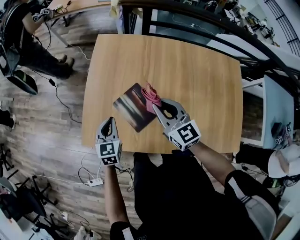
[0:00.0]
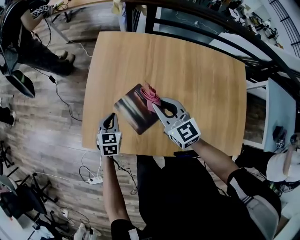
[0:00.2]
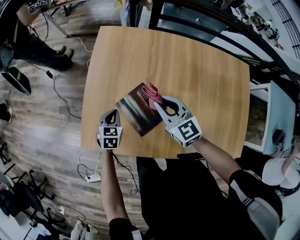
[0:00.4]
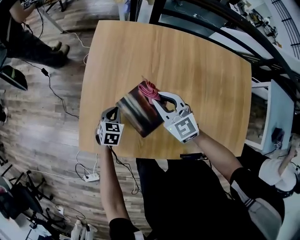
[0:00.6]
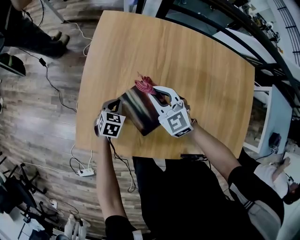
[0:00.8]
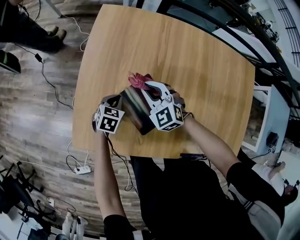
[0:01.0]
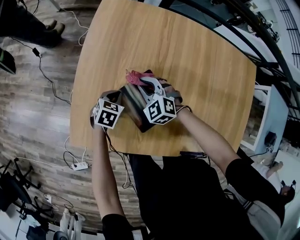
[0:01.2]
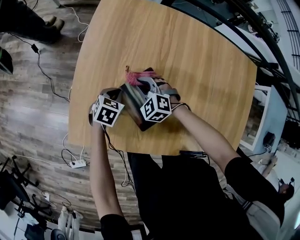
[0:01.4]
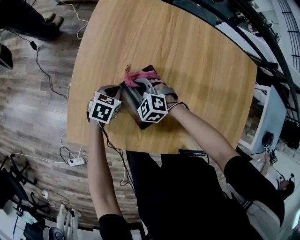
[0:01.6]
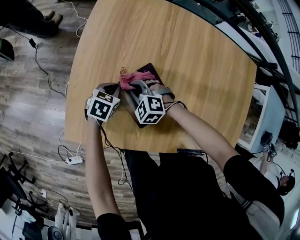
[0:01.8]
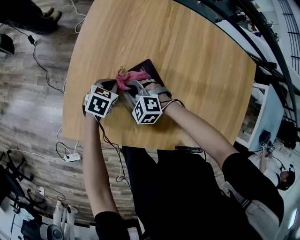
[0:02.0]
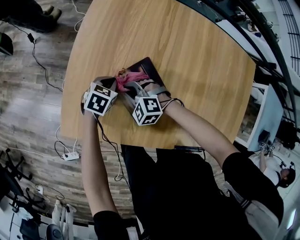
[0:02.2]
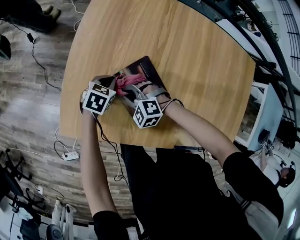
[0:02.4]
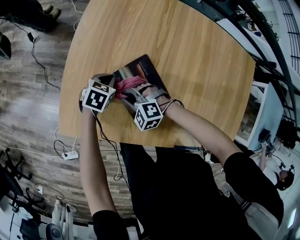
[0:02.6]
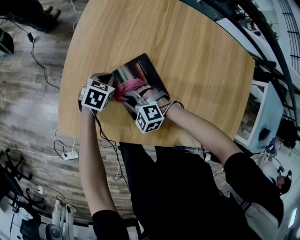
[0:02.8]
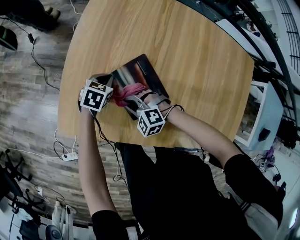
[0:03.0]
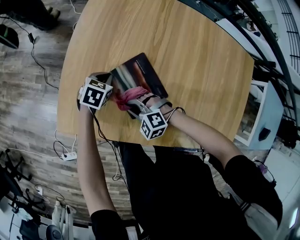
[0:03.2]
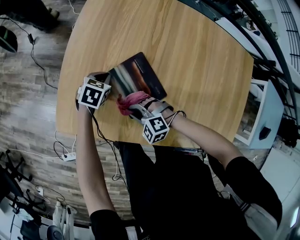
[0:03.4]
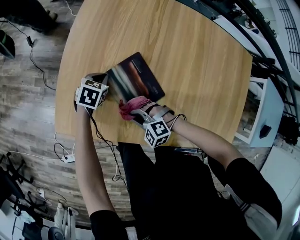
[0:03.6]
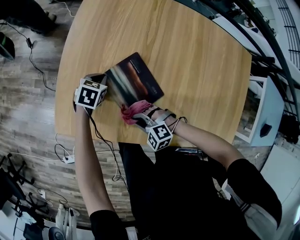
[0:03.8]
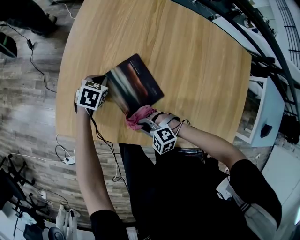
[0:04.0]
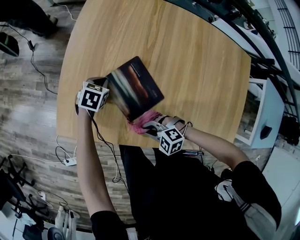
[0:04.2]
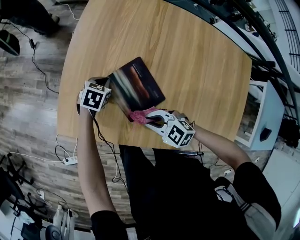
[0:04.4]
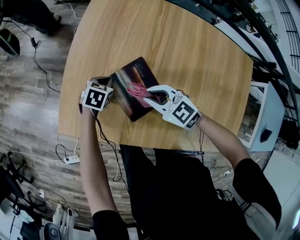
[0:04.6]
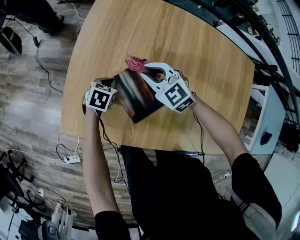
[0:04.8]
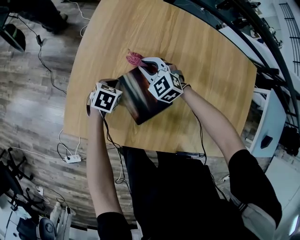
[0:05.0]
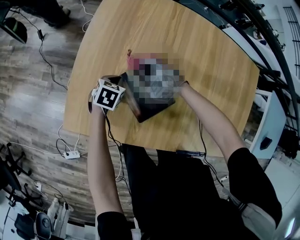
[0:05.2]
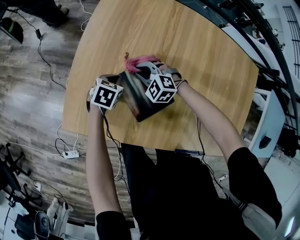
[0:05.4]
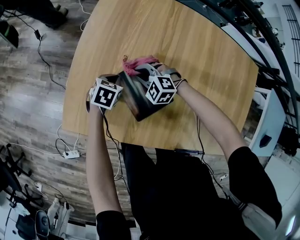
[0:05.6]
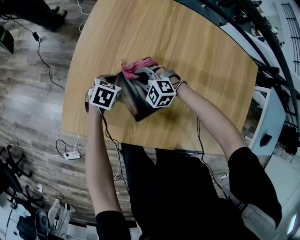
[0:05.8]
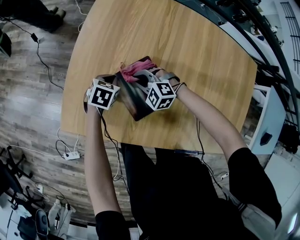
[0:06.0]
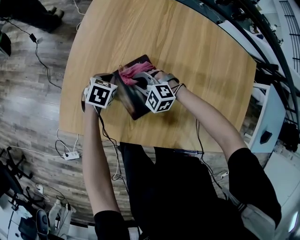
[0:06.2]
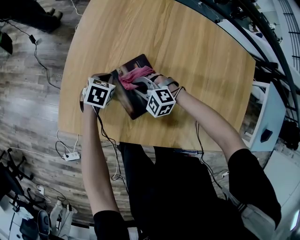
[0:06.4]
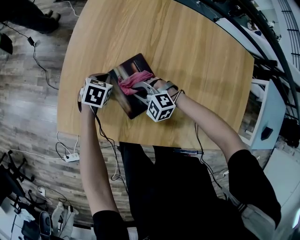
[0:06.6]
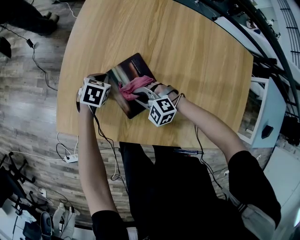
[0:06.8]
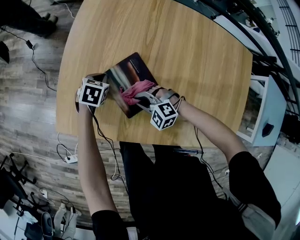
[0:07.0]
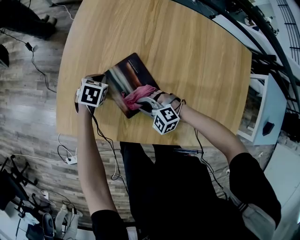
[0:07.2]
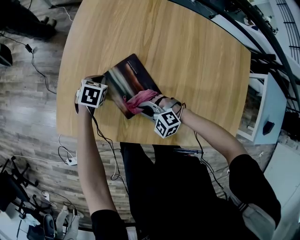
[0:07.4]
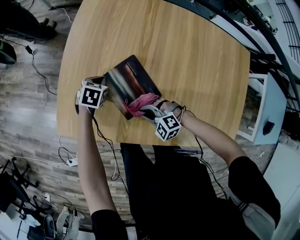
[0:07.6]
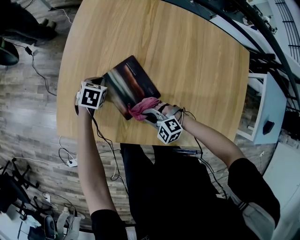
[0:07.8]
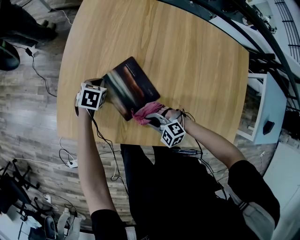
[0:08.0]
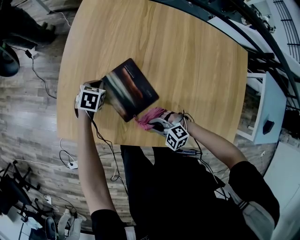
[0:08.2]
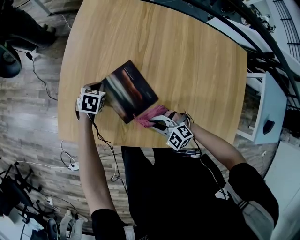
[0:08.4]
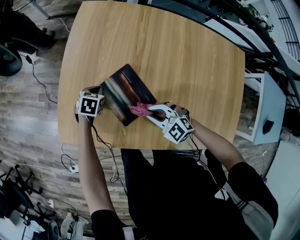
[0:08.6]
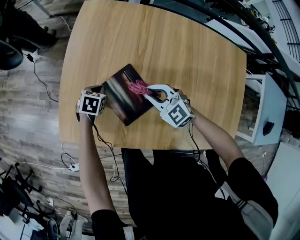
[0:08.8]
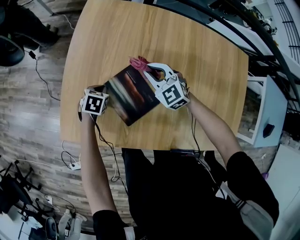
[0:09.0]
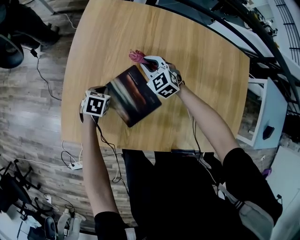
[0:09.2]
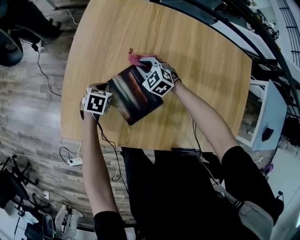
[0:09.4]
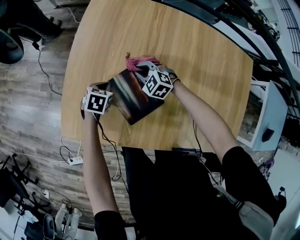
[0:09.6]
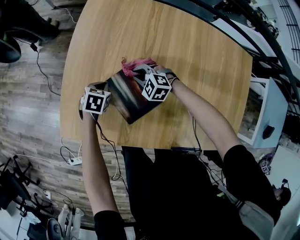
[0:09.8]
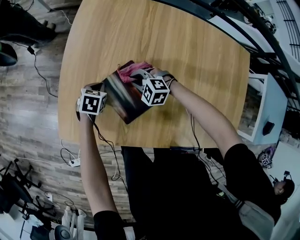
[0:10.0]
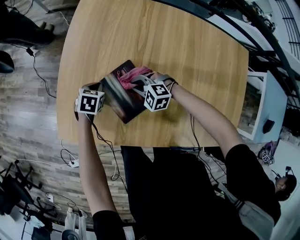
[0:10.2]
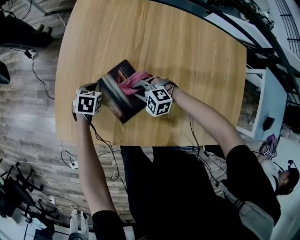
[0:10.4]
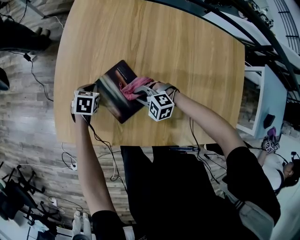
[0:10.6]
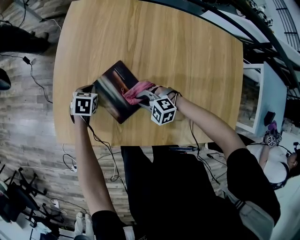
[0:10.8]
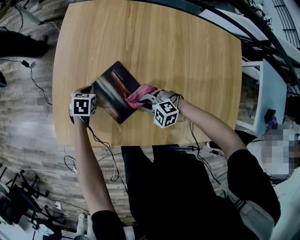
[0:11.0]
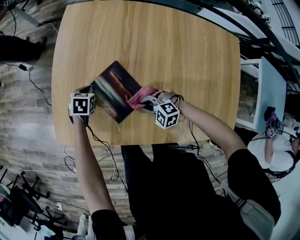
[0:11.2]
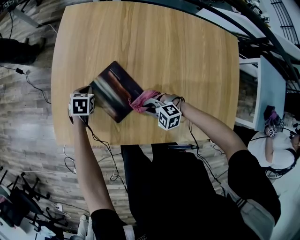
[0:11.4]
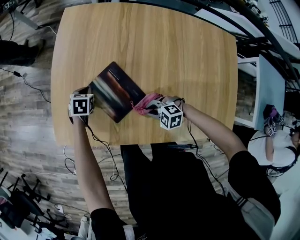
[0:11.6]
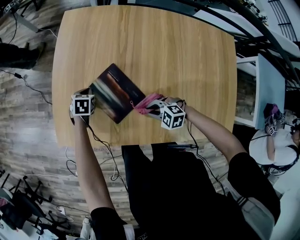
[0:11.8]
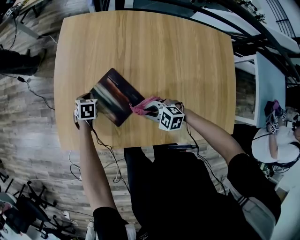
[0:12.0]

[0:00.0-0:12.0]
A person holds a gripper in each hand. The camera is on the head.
0:00.0 to 0:01.6: The left gripper travels downward and forward by some 25 cm, and turns by roughly 40 degrees, while the right gripper is displaced downward by approximately 35 cm, and points its fingers roughly 40 degrees further downward.
0:01.6 to 0:03.0: The right gripper goes about 15 cm backward, and turns by approximately 20 degrees.
0:03.0 to 0:04.4: The right gripper shifts by approximately 15 cm, and rotates roughly 30 degrees.
0:04.4 to 0:06.0: The right gripper moves some 20 cm, and changes its angle by roughly 30 degrees.
0:06.0 to 0:07.6: The right gripper is displaced backward by about 20 cm.
0:07.6 to 0:09.0: The right gripper moves forward and upward, about 25 cm, and rotates some 40 degrees.
0:09.0 to 0:10.4: The right gripper heads downward and backward, covering roughly 15 cm, and rotates approximately 40 degrees.
0:10.4 to 0:12.0: The right gripper is displaced backward by approximately 10 cm.

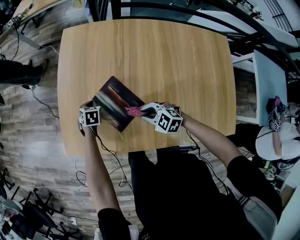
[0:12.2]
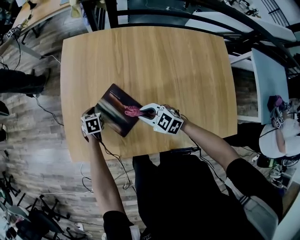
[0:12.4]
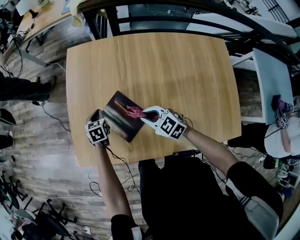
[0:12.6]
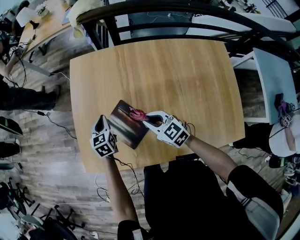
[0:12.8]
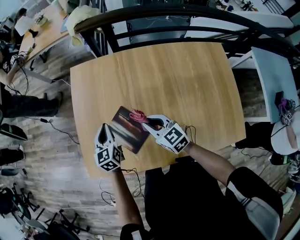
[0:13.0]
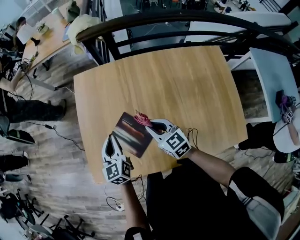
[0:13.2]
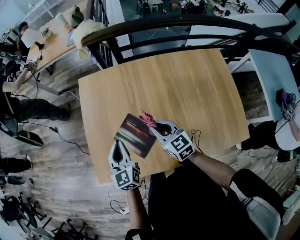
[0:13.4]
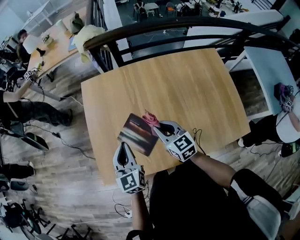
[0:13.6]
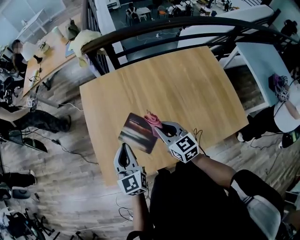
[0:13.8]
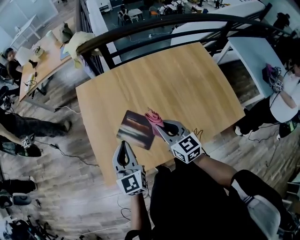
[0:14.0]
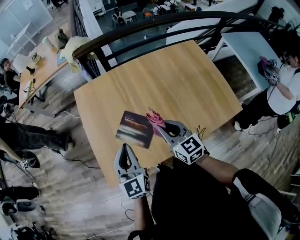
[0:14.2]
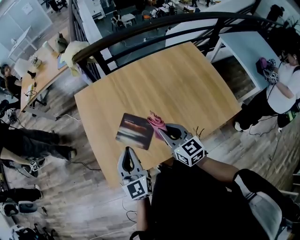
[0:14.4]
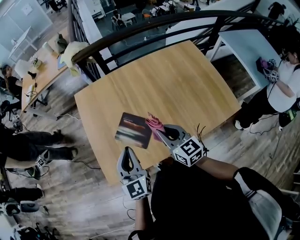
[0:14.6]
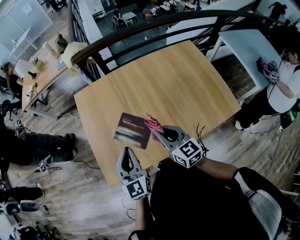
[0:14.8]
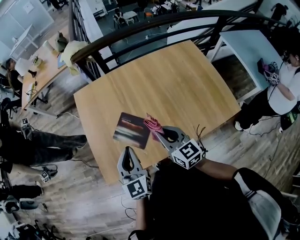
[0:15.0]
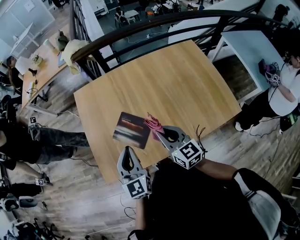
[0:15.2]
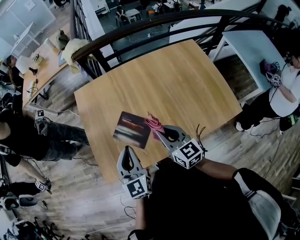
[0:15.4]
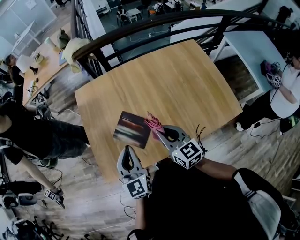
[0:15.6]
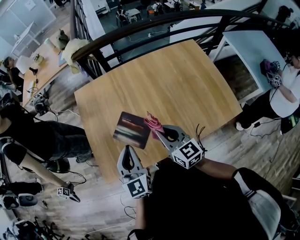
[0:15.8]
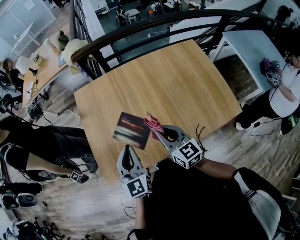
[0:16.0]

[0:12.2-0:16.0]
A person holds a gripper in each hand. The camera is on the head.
0:12.2 to 0:13.4: The left gripper moves upward, some 30 cm, and tips its fingers upward by about 50 degrees, while the right gripper shifts approximately 20 cm upward and forward, and swivels about 50 degrees.
0:13.4 to 0:14.8: The grippers both shift backward and upward by roughly 15 cm.
0:14.8 to 0:16.0: The grippers move only a little.

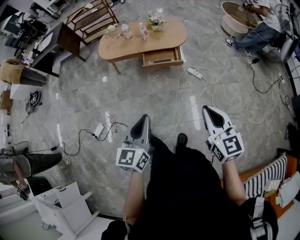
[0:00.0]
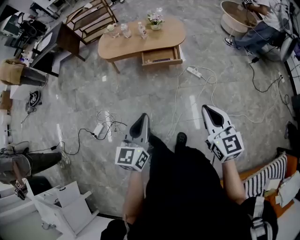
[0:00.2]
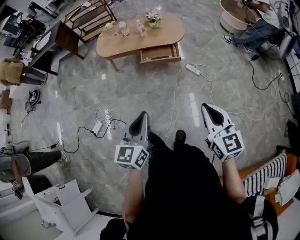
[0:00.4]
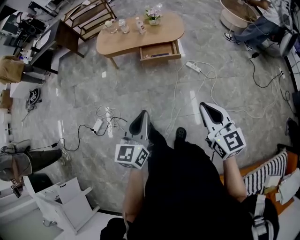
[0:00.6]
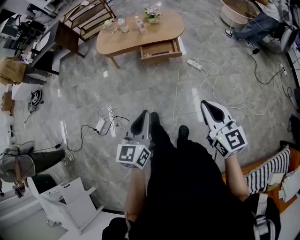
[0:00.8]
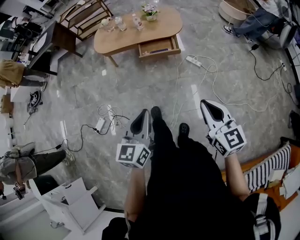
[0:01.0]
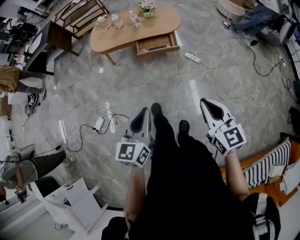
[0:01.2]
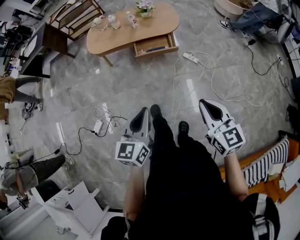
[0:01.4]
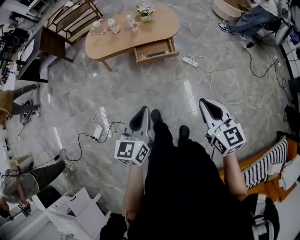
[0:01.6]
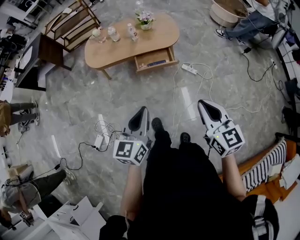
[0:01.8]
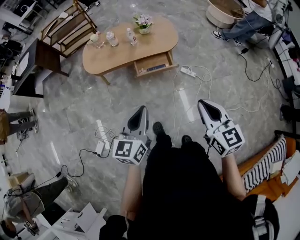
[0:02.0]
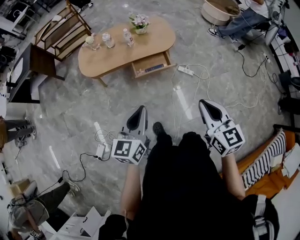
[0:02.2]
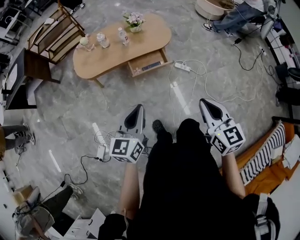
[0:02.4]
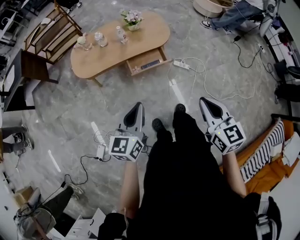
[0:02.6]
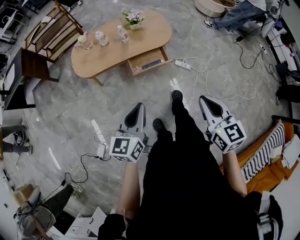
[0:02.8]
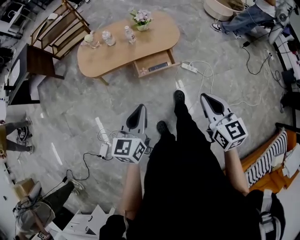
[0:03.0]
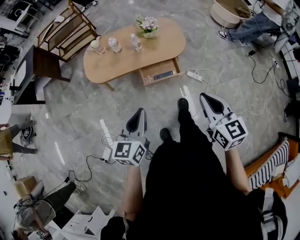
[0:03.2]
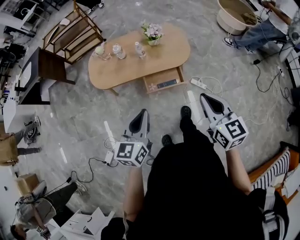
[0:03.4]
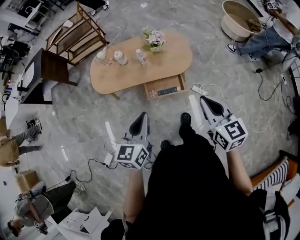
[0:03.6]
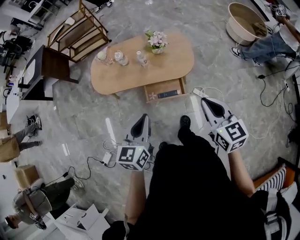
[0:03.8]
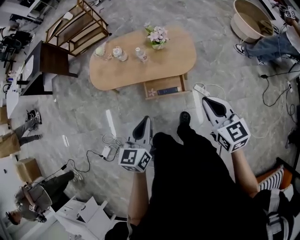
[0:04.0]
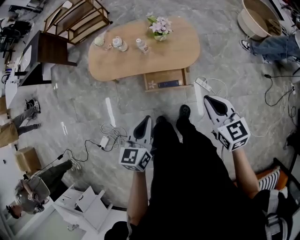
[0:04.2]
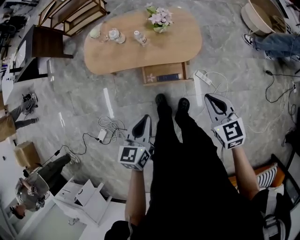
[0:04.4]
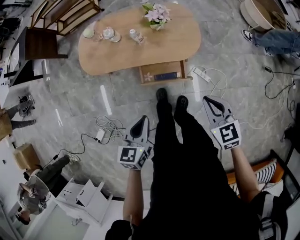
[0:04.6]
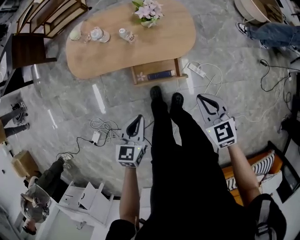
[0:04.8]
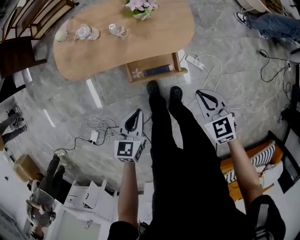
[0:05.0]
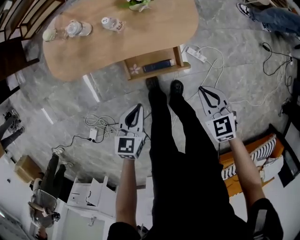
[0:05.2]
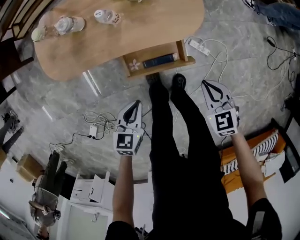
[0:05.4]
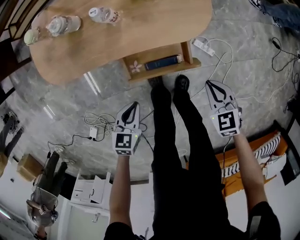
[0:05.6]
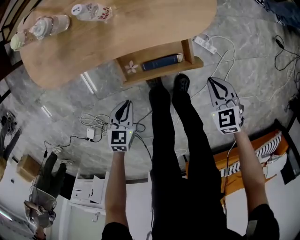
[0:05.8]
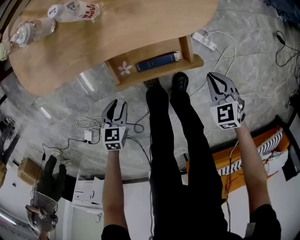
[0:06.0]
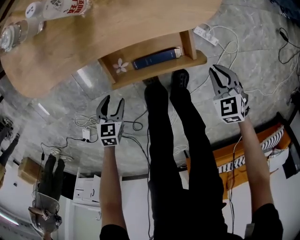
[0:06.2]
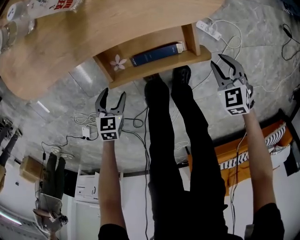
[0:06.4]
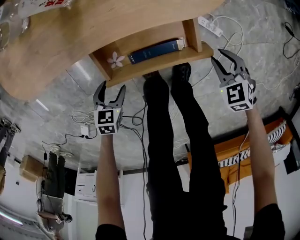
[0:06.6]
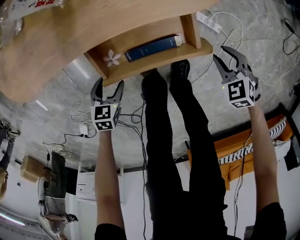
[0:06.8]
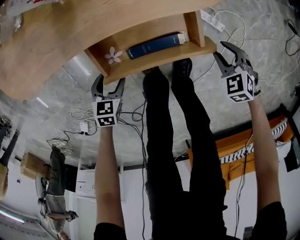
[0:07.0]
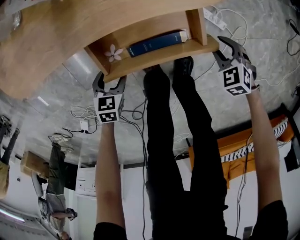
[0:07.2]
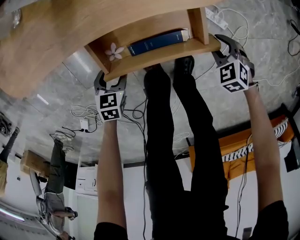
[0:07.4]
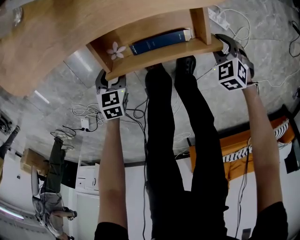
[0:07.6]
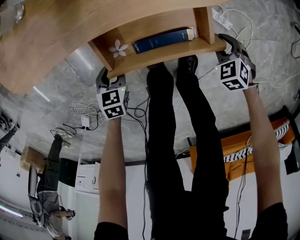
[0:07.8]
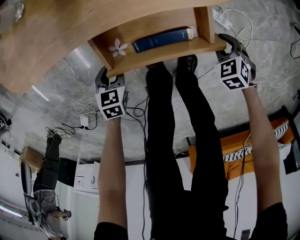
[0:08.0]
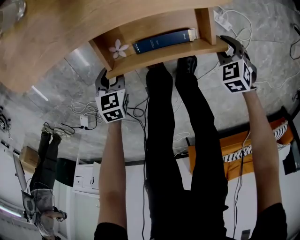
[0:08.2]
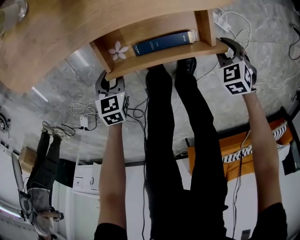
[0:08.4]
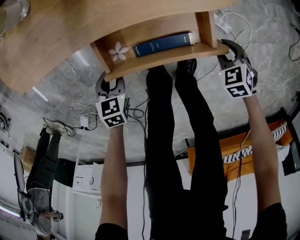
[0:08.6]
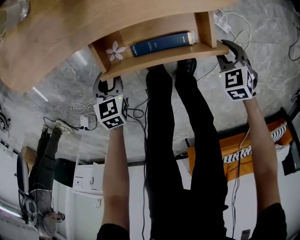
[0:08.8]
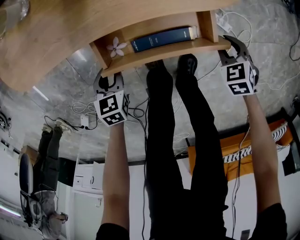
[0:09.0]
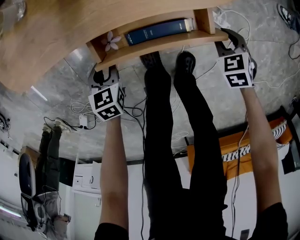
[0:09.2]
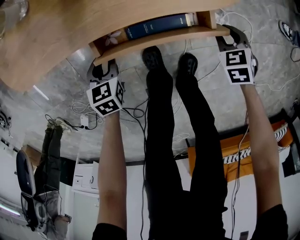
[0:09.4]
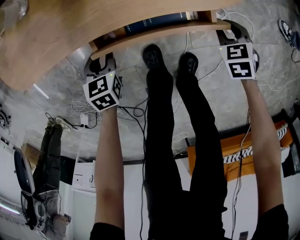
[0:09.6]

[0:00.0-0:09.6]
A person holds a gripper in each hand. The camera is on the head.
0:00.0 to 0:01.6: The grippers both shift forward by approximately 10 cm.
0:01.6 to 0:03.2: Both grippers travel together forward and to the left, about 25 cm.
0:03.2 to 0:04.8: The left gripper heads downward, forward and to the right, covering approximately 25 cm, and rotates roughly 20 degrees; the right gripper heads forward and downward, covering about 30 cm, and turns by about 30 degrees.
0:04.8 to 0:06.4: Both grippers move downward, approximately 50 cm. The right gripper changes its angle by about 20 degrees, and opens its fingers; the left gripper changes its angle by roughly 30 degrees, and opens.
0:06.4 to 0:08.0: The right gripper is displaced downward by roughly 10 cm, while the left gripper shifts by approximately 5 cm, and closes up.
0:08.0 to 0:09.6: The two grippers go approximately 10 cm forward.
